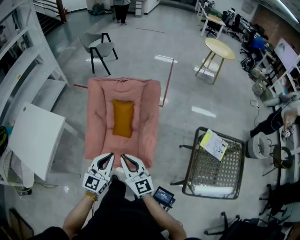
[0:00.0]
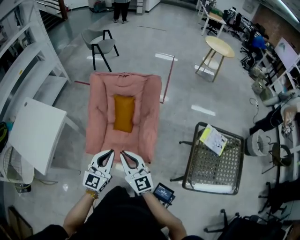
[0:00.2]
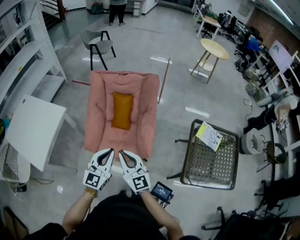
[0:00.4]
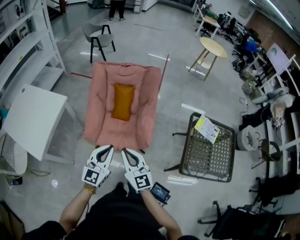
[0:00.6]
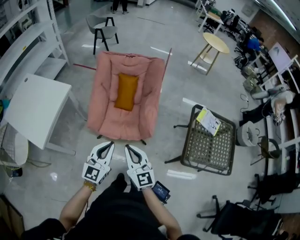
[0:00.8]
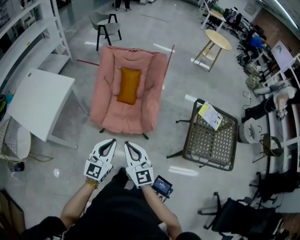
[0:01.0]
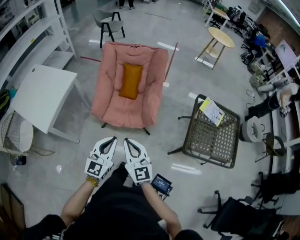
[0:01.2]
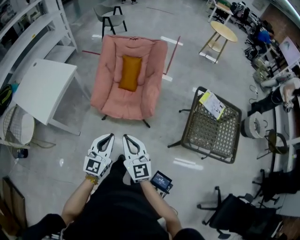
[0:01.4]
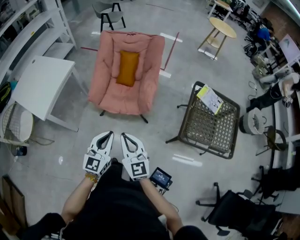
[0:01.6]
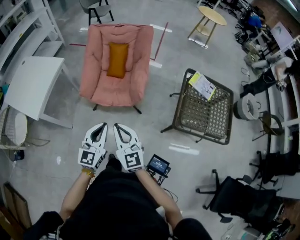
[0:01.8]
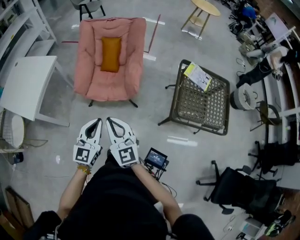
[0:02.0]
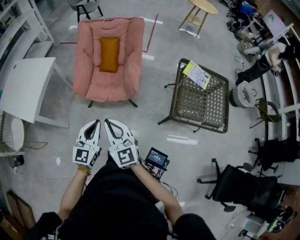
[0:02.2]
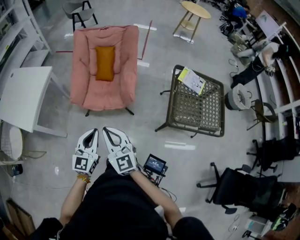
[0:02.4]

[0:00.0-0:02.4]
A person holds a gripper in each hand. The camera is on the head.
0:00.0 to 0:01.2: The grippers both shift backward by roughly 30 cm.
0:01.2 to 0:02.4: Both grippers move backward, some 5 cm.

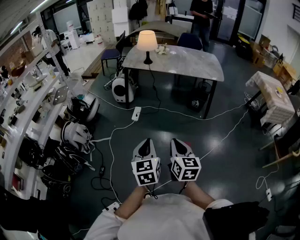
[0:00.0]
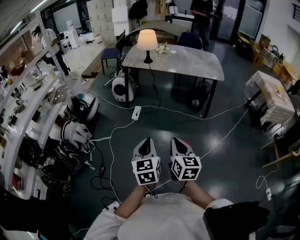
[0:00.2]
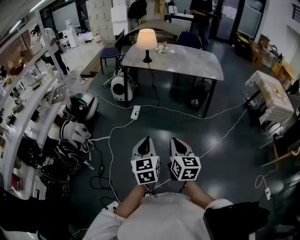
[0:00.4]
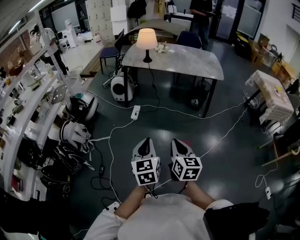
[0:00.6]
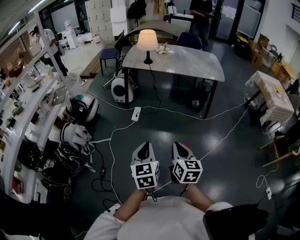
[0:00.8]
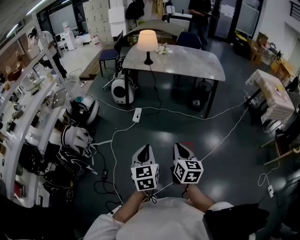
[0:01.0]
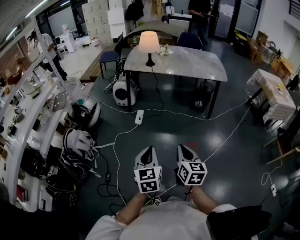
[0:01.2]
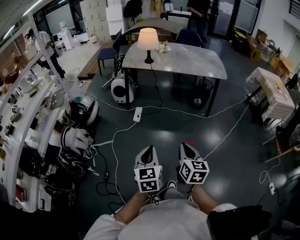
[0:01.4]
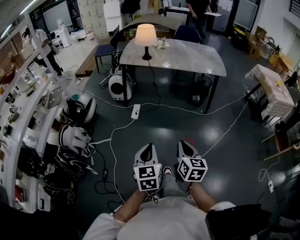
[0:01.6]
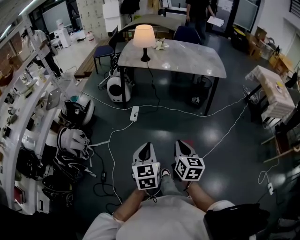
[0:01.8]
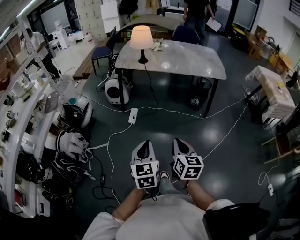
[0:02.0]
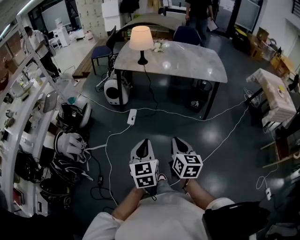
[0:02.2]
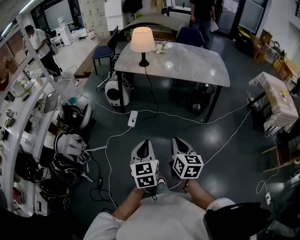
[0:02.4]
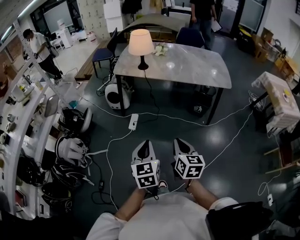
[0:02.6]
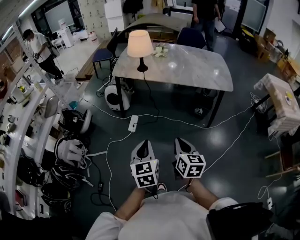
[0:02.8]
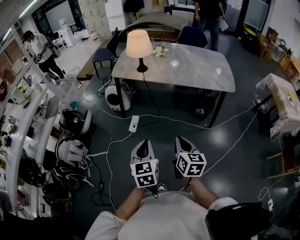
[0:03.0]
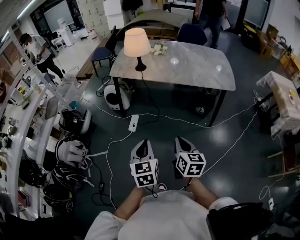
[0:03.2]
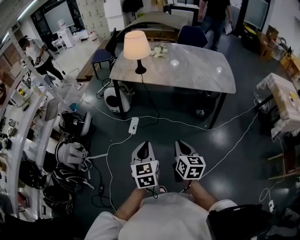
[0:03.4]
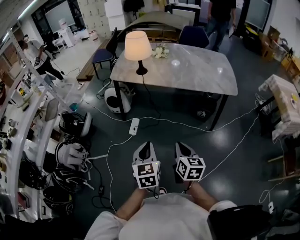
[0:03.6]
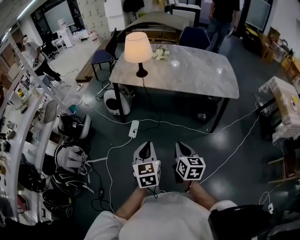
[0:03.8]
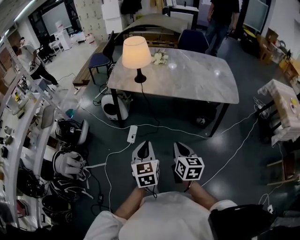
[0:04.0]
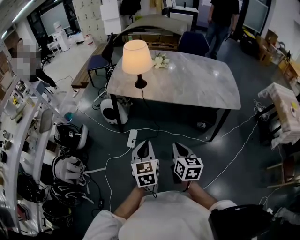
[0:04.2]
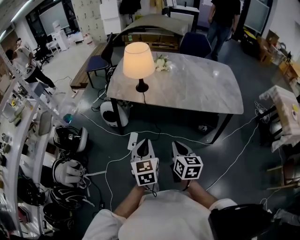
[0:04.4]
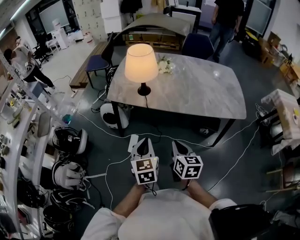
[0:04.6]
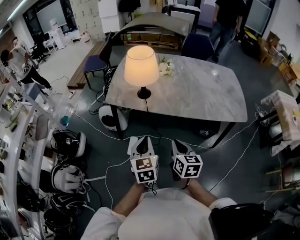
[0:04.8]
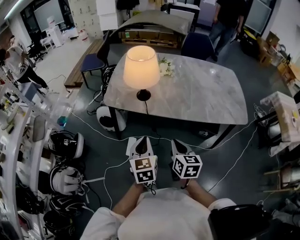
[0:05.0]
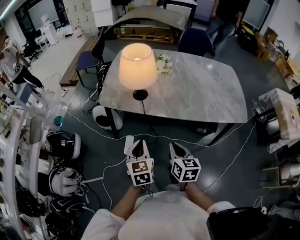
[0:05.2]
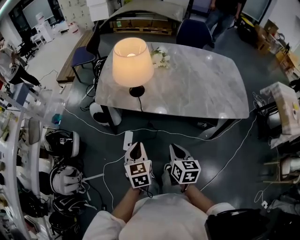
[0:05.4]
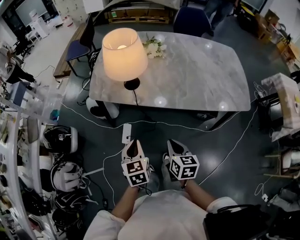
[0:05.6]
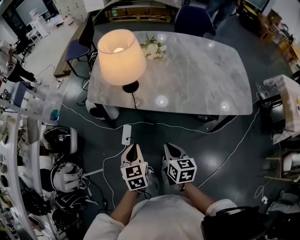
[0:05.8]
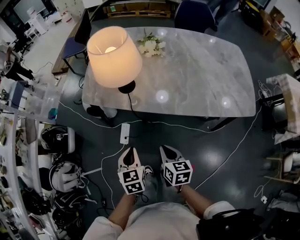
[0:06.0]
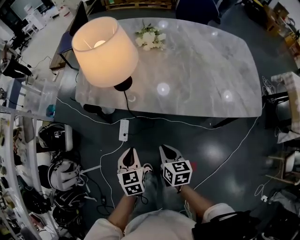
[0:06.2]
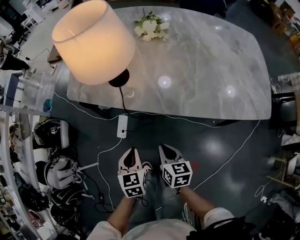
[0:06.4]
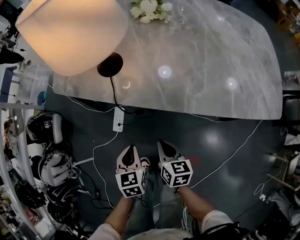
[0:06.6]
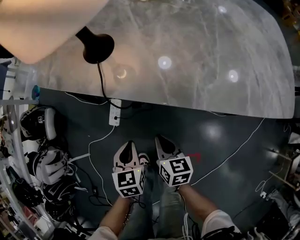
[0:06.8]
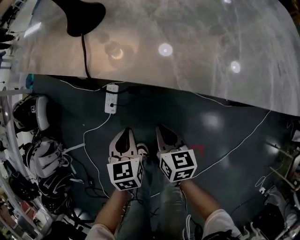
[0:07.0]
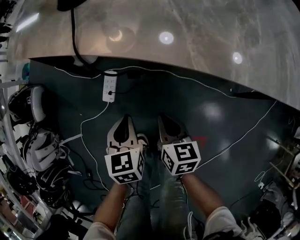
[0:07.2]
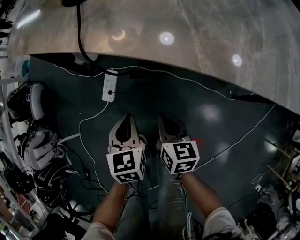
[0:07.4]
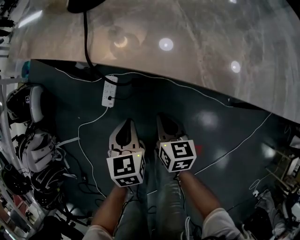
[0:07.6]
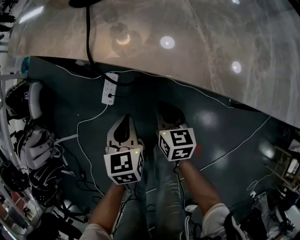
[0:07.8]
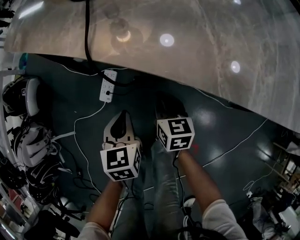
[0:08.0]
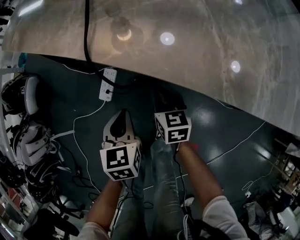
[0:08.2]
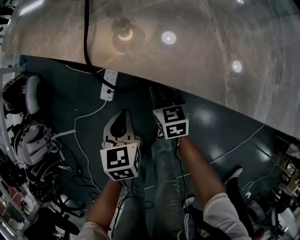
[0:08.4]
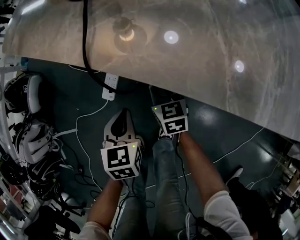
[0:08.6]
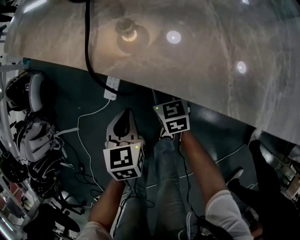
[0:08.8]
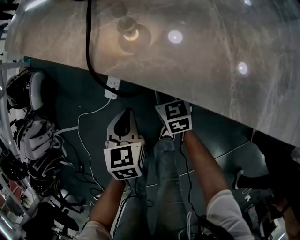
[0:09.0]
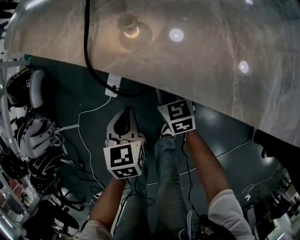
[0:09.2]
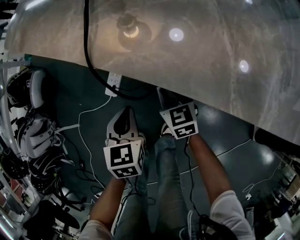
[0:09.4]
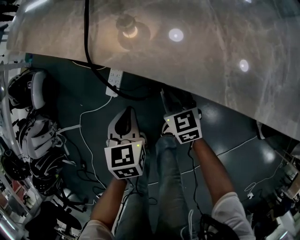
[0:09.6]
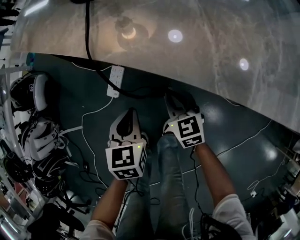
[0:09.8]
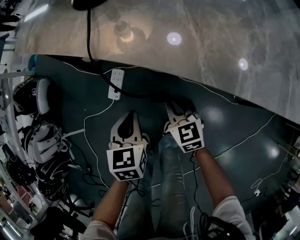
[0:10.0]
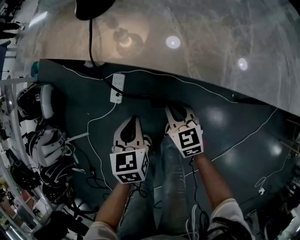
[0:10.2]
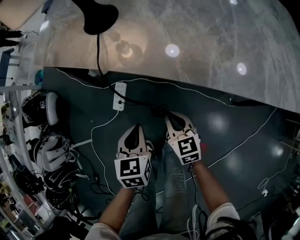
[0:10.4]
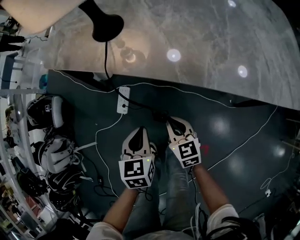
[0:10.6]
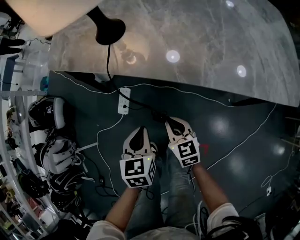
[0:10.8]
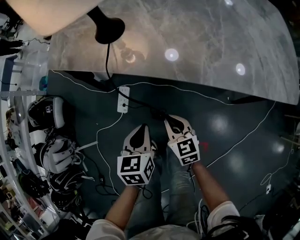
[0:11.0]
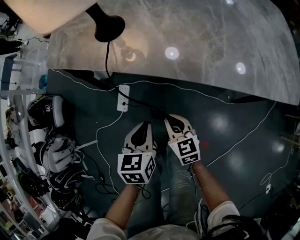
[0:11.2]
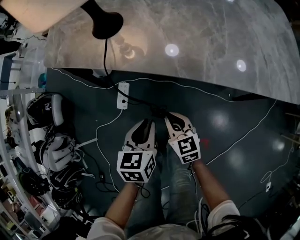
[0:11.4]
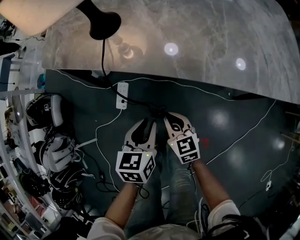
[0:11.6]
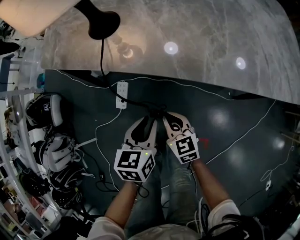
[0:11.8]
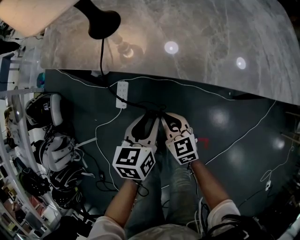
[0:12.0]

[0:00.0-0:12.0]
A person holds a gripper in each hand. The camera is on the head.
0:00.0 to 0:01.6: Both grippers move forward, some 5 cm.
0:01.6 to 0:03.0: Both grippers move forward, approximately 25 cm.
0:03.0 to 0:04.4: Both grippers move forward, about 25 cm.
0:04.4 to 0:06.0: Both grippers travel together forward and downward, about 20 cm.
0:06.0 to 0:07.6: Both grippers move downward, roughly 35 cm.
0:07.6 to 0:09.0: The right gripper travels forward by roughly 15 cm, and rotates some 30 degrees.
0:09.0 to 0:10.4: The left gripper travels upward and backward by about 10 cm. Meanwhile the right gripper shifts some 20 cm backward and upward.
0:10.4 to 0:12.0: The left gripper goes about 5 cm upward, and opens.

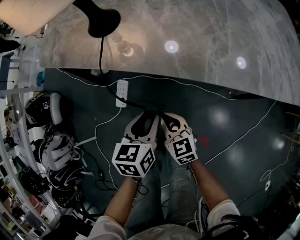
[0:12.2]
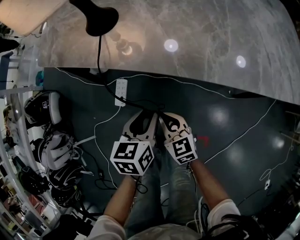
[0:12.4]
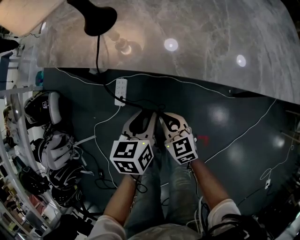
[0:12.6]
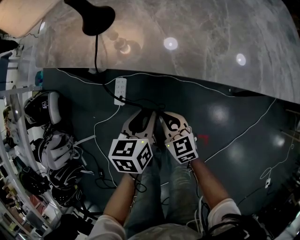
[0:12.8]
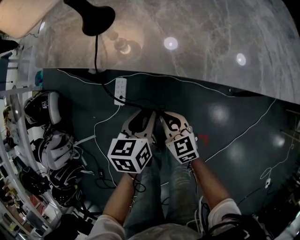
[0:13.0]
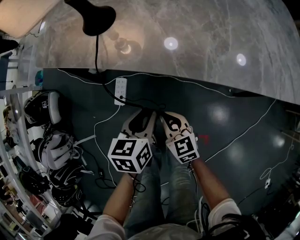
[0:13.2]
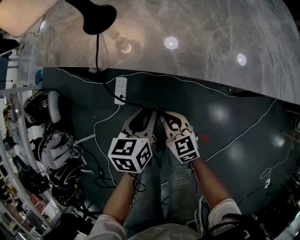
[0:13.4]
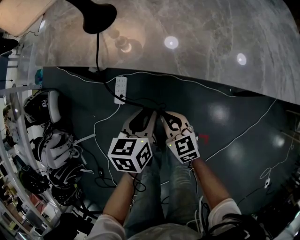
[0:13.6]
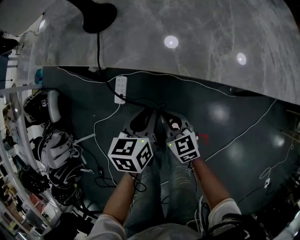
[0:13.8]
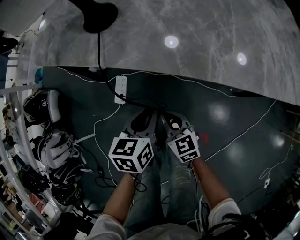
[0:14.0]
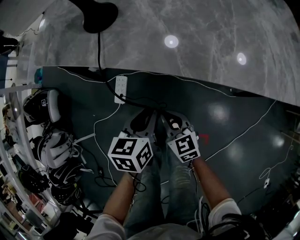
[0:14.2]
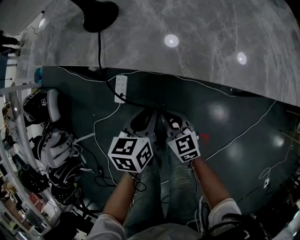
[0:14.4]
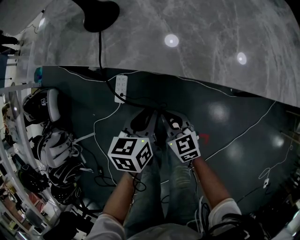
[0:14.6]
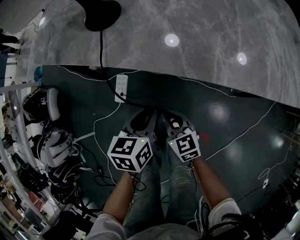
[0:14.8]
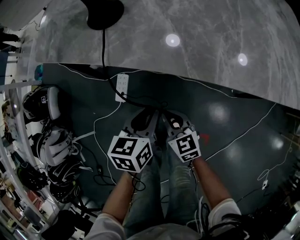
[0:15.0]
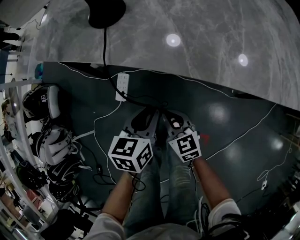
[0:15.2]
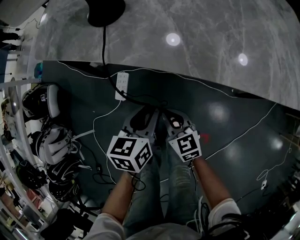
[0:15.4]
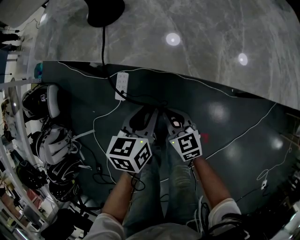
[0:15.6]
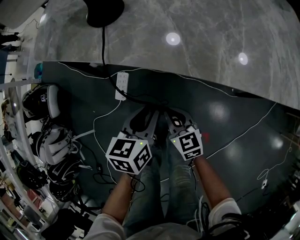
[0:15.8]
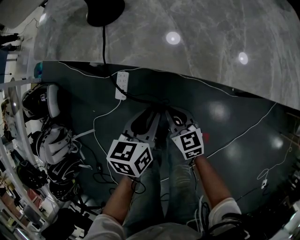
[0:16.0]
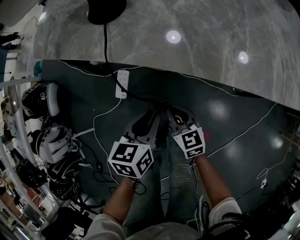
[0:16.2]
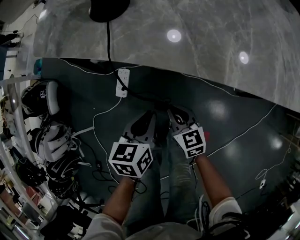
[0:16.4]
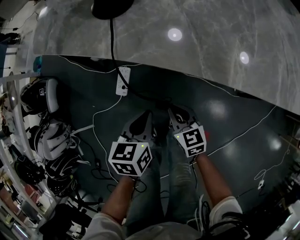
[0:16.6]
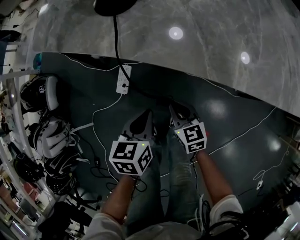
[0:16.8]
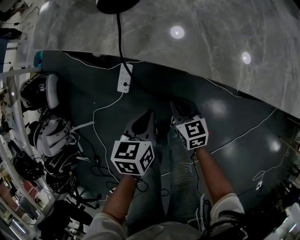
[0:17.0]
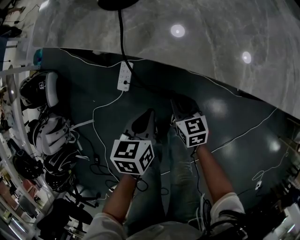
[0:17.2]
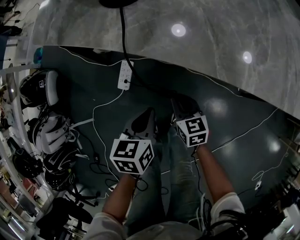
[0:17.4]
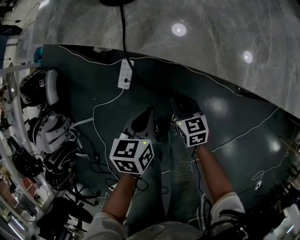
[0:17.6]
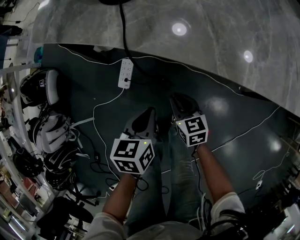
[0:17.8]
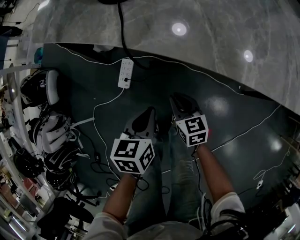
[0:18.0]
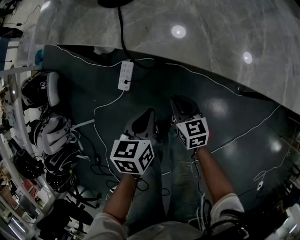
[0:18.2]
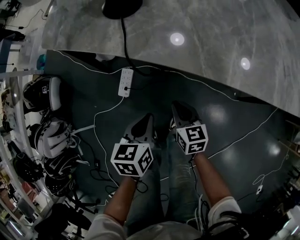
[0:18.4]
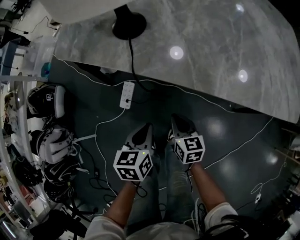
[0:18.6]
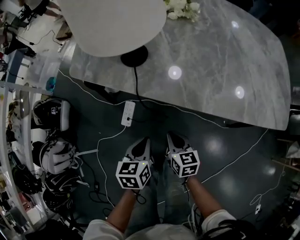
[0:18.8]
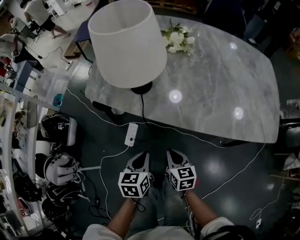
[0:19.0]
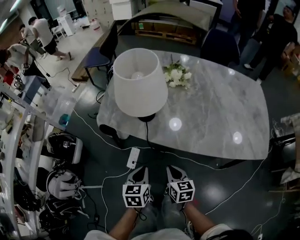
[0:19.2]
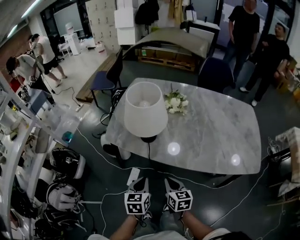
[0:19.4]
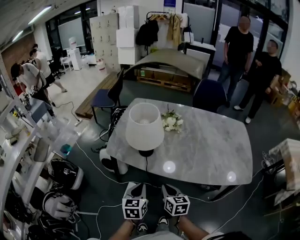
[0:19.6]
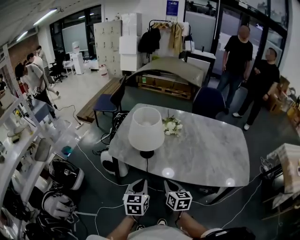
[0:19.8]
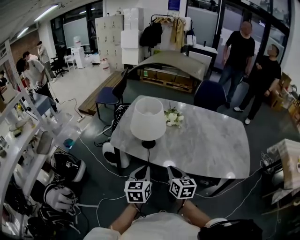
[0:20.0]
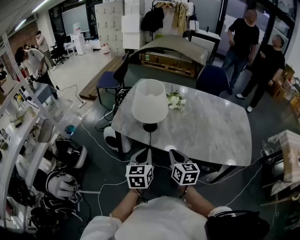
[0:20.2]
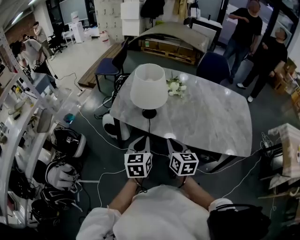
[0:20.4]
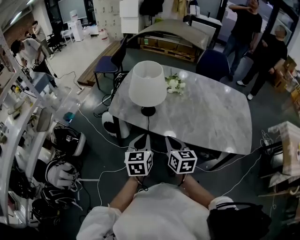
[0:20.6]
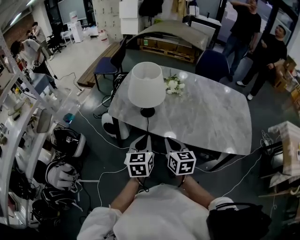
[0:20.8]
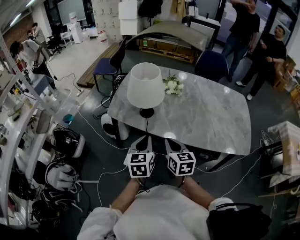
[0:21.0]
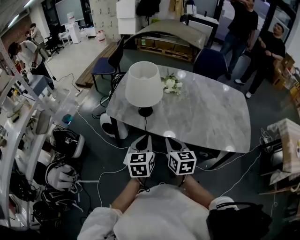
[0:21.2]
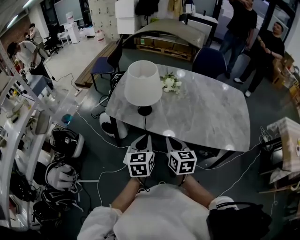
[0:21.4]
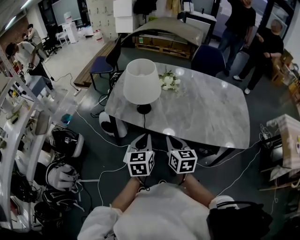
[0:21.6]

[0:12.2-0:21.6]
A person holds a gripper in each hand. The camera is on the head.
0:12.2 to 0:13.8: The grippers make only small movements.
0:13.8 to 0:15.4: Neither gripper changes place.
0:15.4 to 0:17.0: The right gripper moves about 5 cm. Meanwhile the left gripper moves about 5 cm.
0:17.0 to 0:18.4: The grippers make only small movements.
0:18.4 to 0:20.0: Both grippers travel together upward, roughly 40 cm. The left gripper changes its angle by some 30 degrees.
0:20.0 to 0:21.6: The grippers make only small movements.
